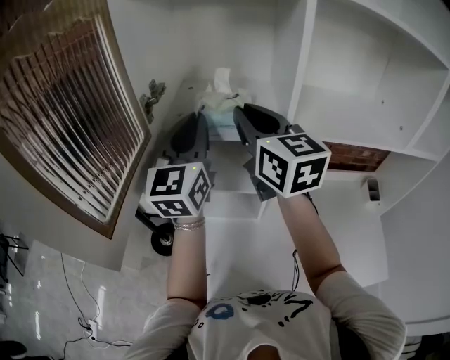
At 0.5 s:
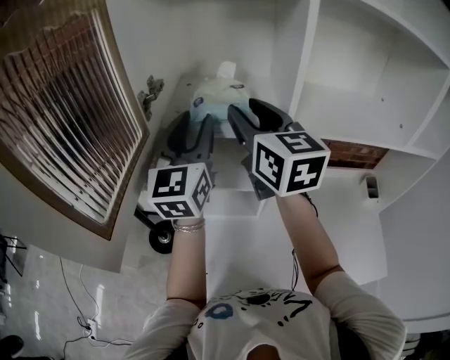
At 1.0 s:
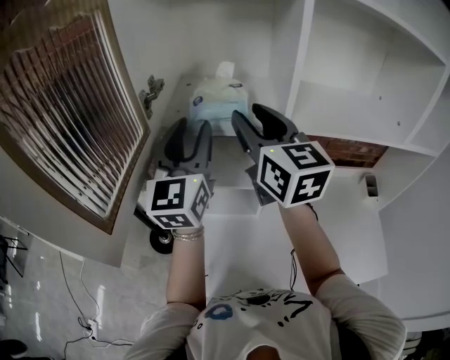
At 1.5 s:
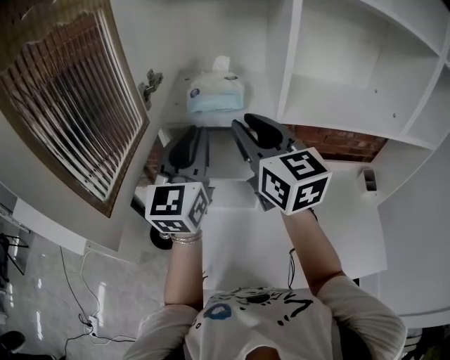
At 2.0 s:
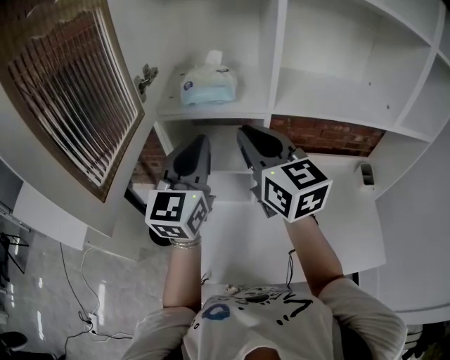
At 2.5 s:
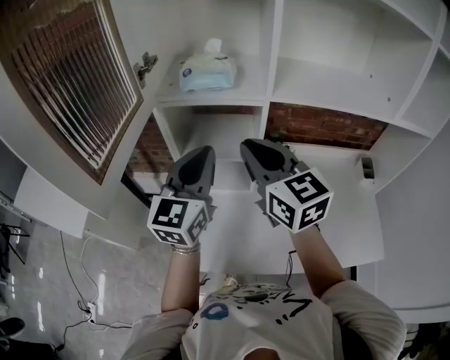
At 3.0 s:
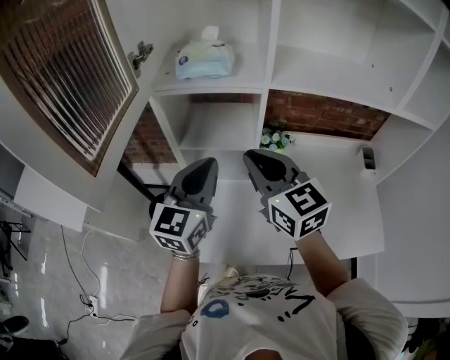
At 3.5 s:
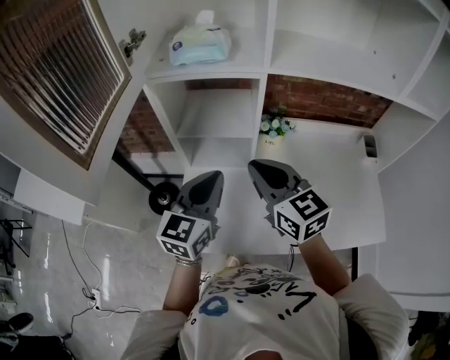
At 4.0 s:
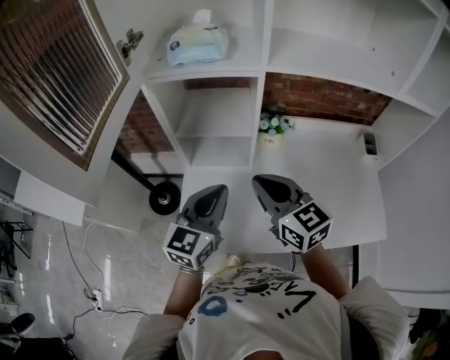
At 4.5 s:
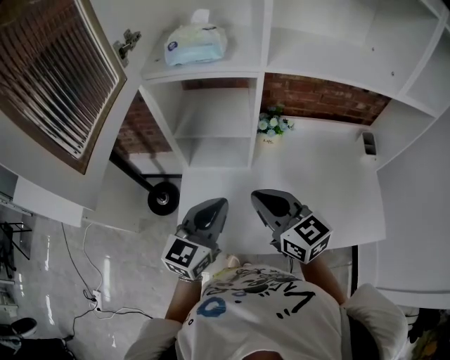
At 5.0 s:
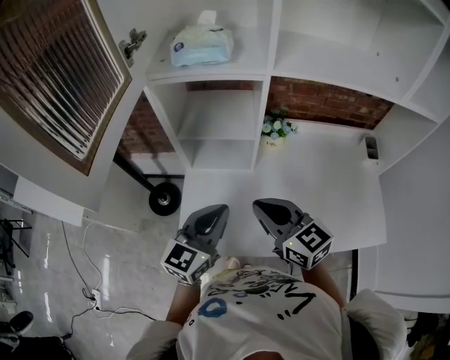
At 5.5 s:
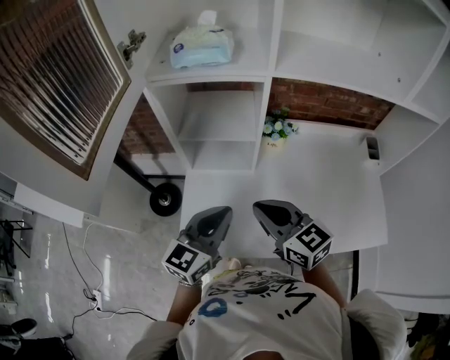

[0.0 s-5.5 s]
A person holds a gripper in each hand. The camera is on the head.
0.0 to 2.0 s: The grippers both shift backward by roughly 10 cm. The left gripper opens and closes again; the right gripper opens, then closes once more.
2.0 to 3.5 s: The grippers both shift downward and backward by some 15 cm. The left gripper rotates about 20 degrees.
3.5 to 5.5 s: The left gripper goes approximately 10 cm backward and downward. Meanwhile the right gripper heads downward and backward, covering about 10 cm.

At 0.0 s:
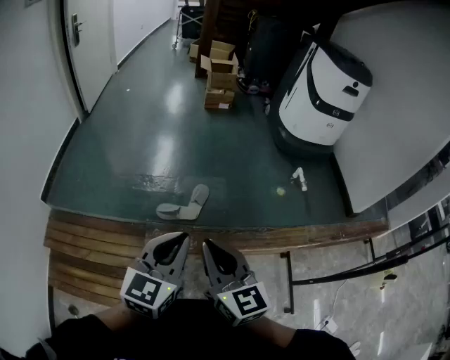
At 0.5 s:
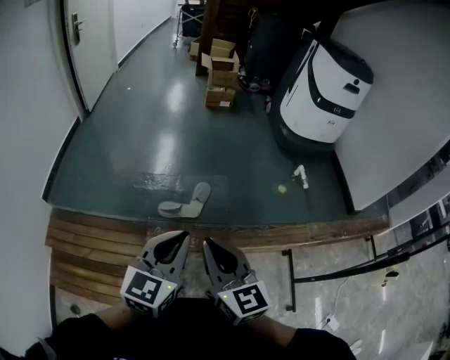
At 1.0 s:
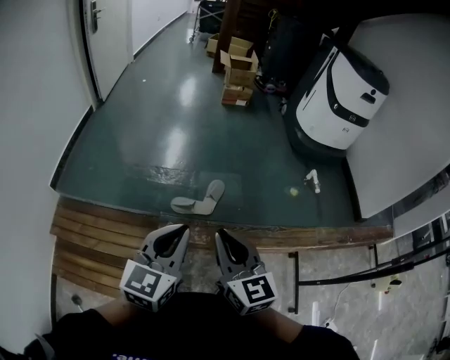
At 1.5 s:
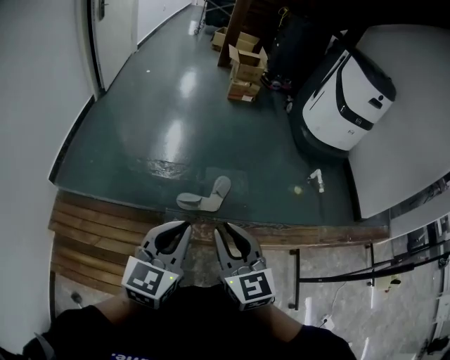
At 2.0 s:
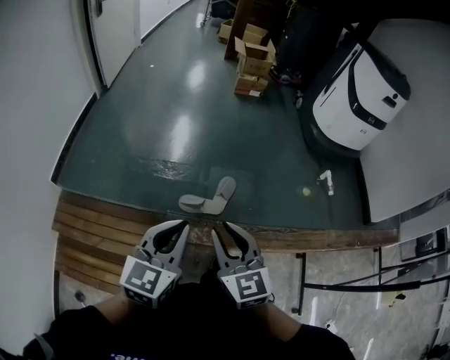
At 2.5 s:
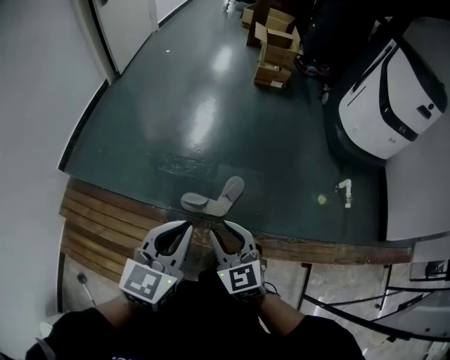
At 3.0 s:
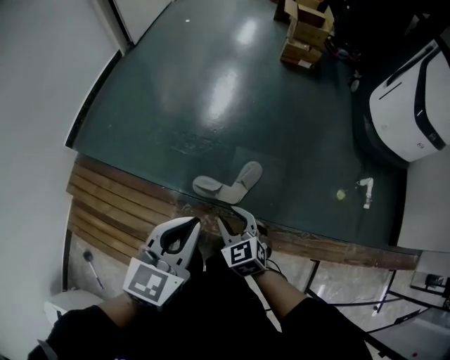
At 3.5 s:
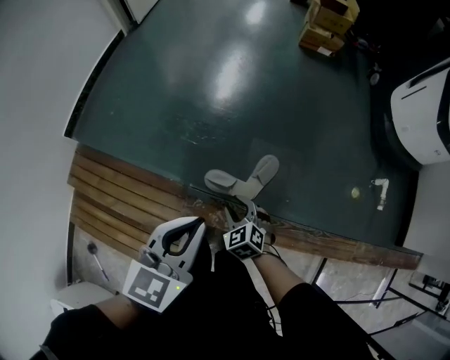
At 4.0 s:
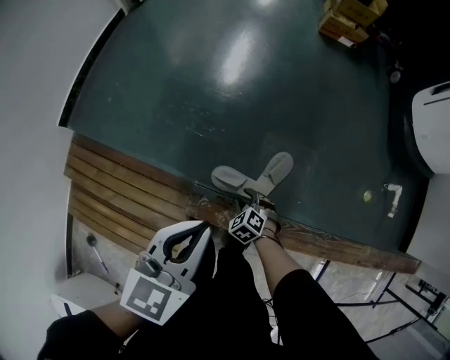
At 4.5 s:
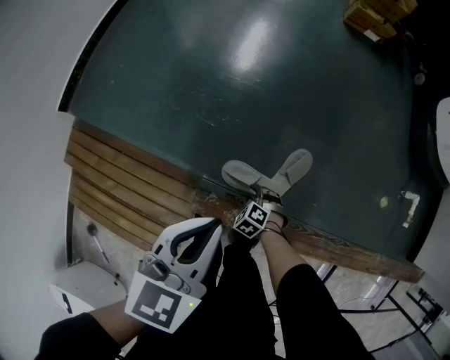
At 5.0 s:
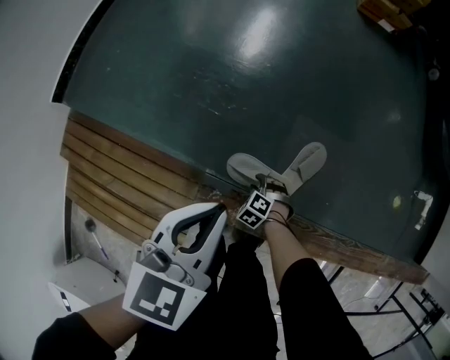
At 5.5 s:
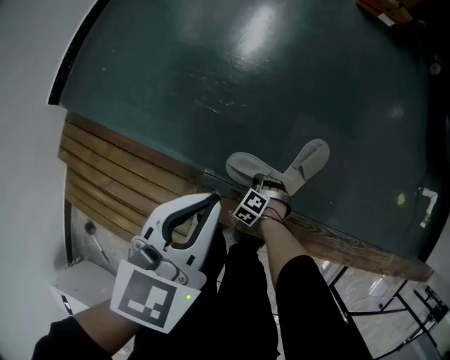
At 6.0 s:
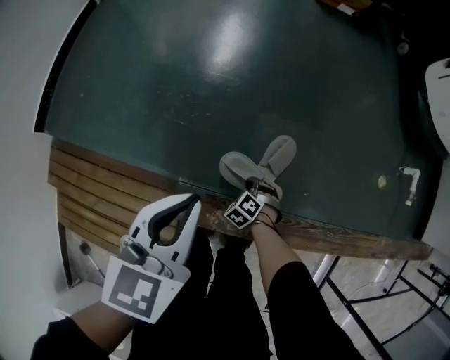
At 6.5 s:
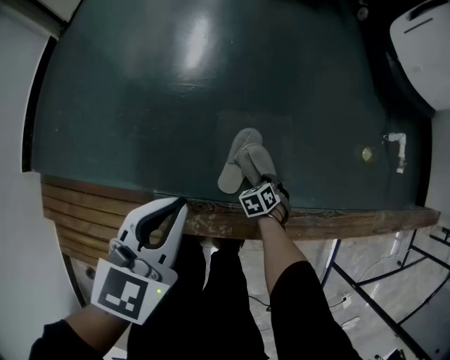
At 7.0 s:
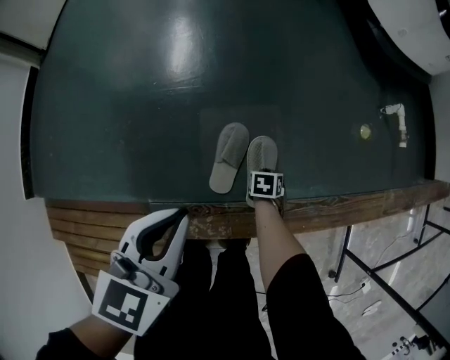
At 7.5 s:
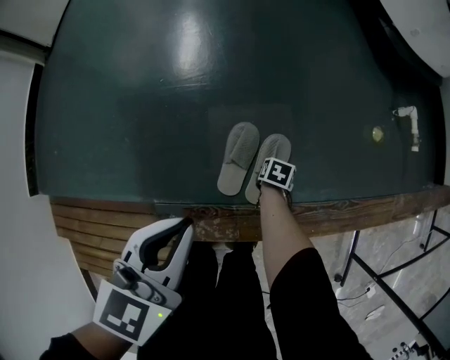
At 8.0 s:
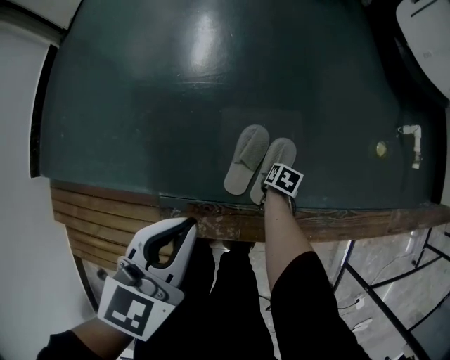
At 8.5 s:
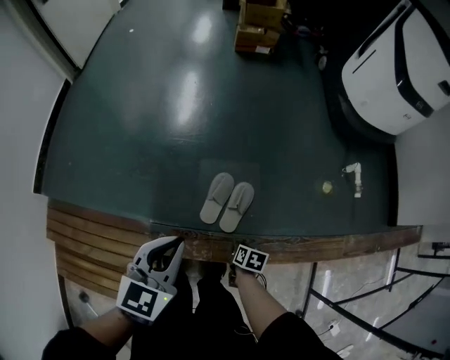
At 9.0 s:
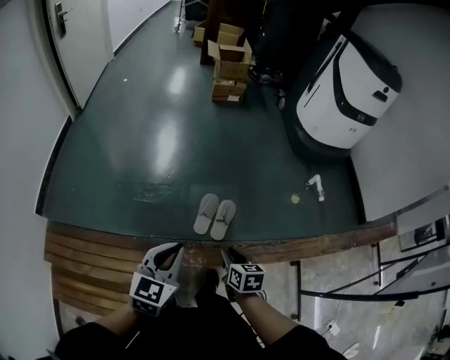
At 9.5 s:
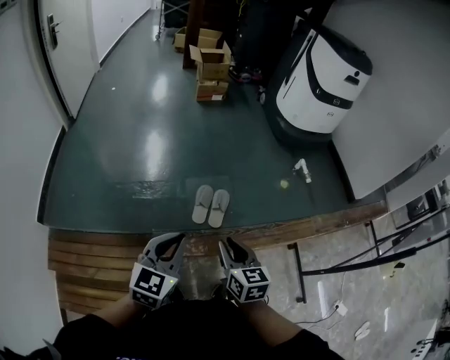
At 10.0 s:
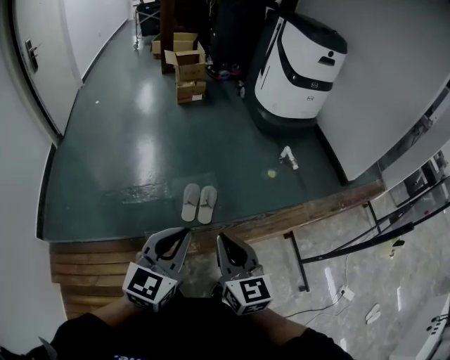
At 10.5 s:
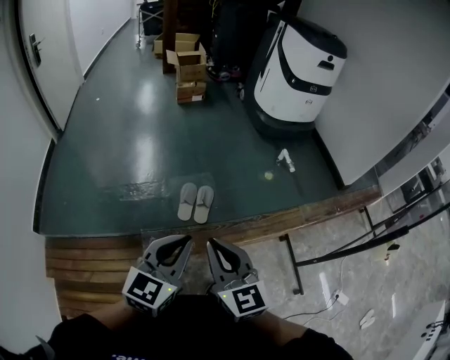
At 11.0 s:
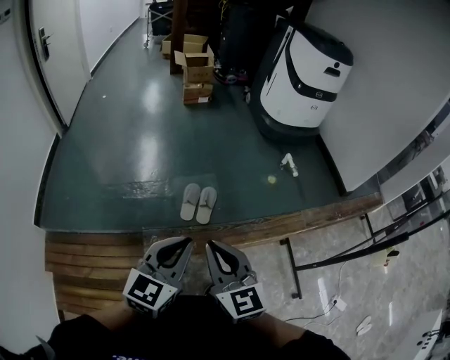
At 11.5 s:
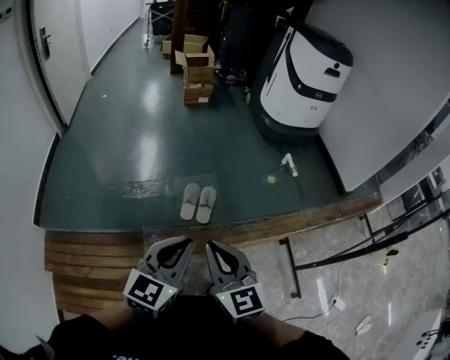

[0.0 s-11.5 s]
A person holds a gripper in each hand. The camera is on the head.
0.0 to 2.0 s: The right gripper goes about 15 cm forward, to the left and downward. Meanwhile the left gripper is displaced to the left and forward by some 15 cm.
2.0 to 4.0 s: The right gripper is displaced downward and forward by roughly 60 cm, and points its fingers about 60 degrees further downward, while the left gripper heads forward and downward, covering some 30 cm.
4.0 to 6.0 s: The grippers both shift downward by about 15 cm. The right gripper closes.
6.0 to 7.5 s: The right gripper changes place by approximately 25 cm, and rolls clockwise, seen from behind, by approximately 90 degrees. Meanwhile the left gripper changes place by roughly 15 cm.
7.5 to 9.5 s: The left gripper shifts by some 40 cm, and rotates approximately 20 degrees. Meanwhile the right gripper heads upward, covering about 60 cm, and tilts its fingers approximately 50 degrees upward.
9.5 to 11.5 s: The right gripper shifts roughly 15 cm upward and backward, turns by roughly 30 degrees, and closes up, while the left gripper travels to the right, backward and upward by approximately 15 cm.

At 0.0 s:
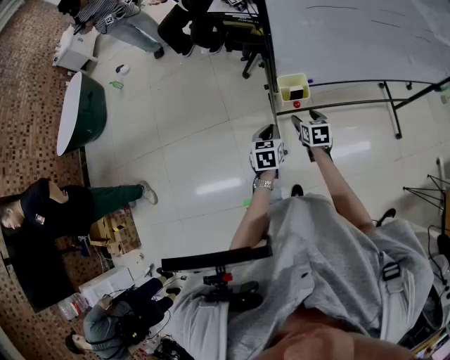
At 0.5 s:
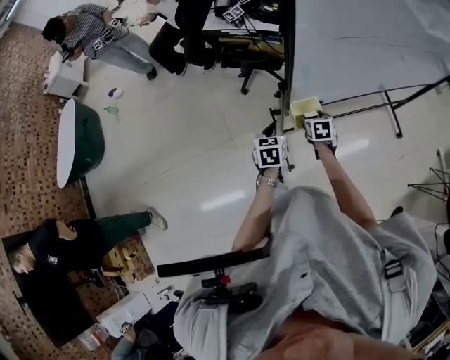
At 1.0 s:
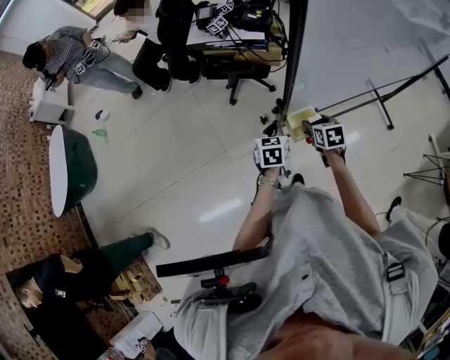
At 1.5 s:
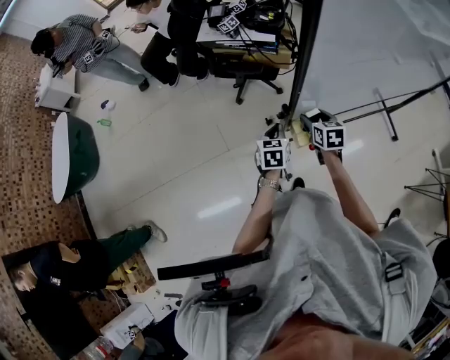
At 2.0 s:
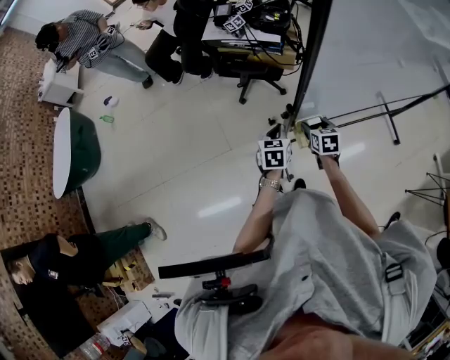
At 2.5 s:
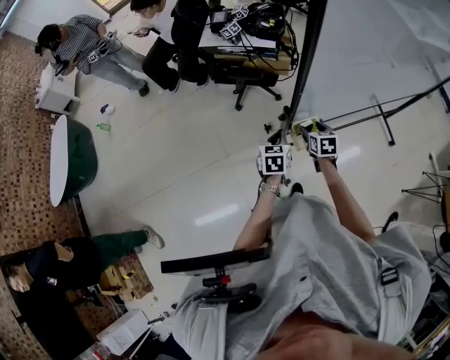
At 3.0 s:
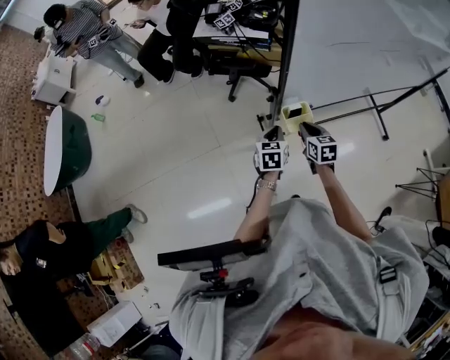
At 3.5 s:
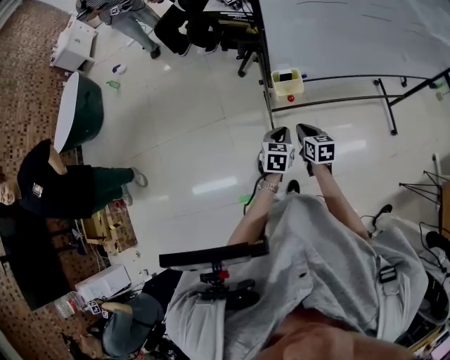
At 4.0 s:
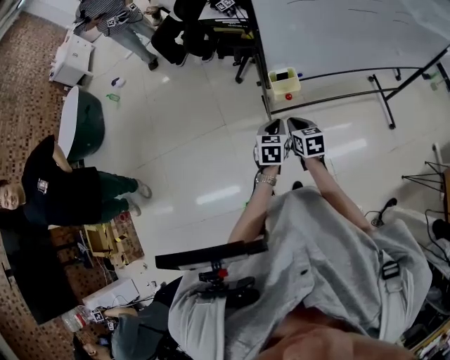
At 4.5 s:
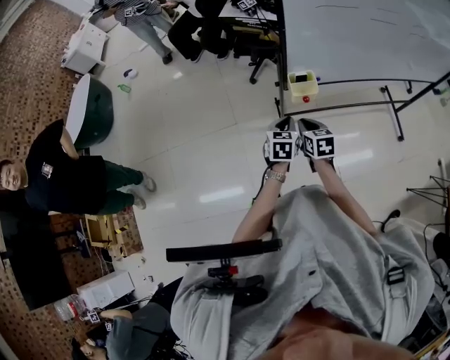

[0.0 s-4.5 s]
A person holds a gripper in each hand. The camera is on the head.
0.0 to 2.0 s: The grippers both shift forward by some 15 cm.
2.0 to 4.5 s: The two grippers go about 20 cm backward. The right gripper closes.

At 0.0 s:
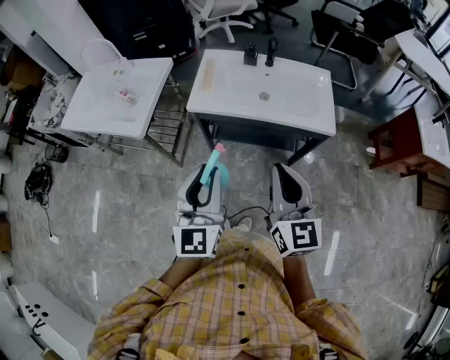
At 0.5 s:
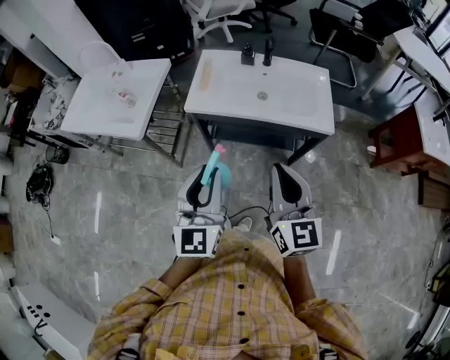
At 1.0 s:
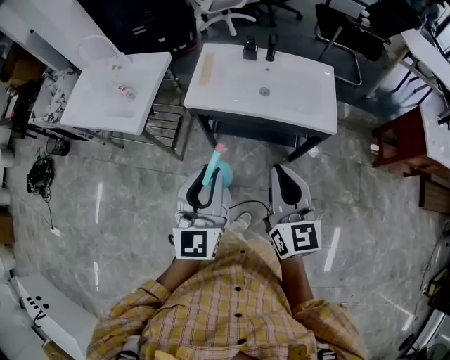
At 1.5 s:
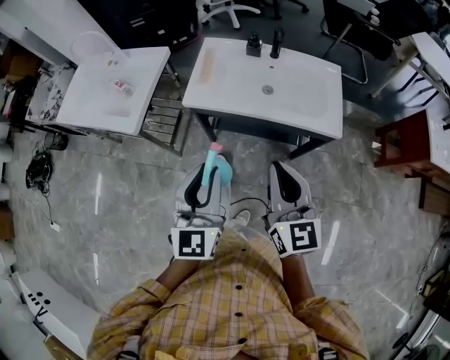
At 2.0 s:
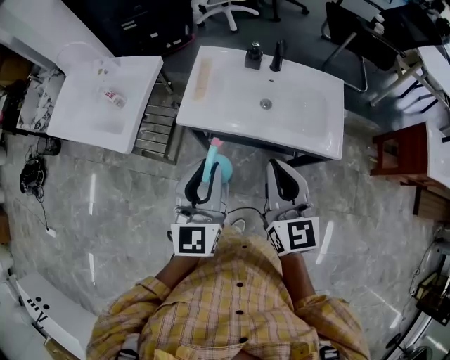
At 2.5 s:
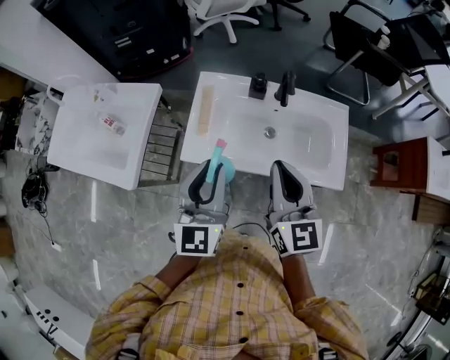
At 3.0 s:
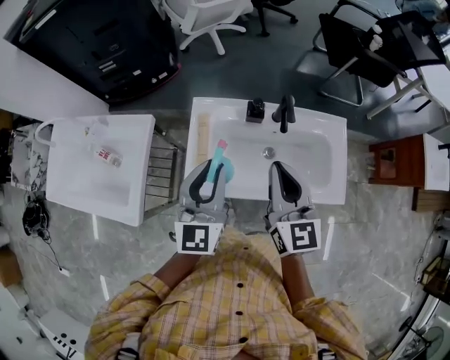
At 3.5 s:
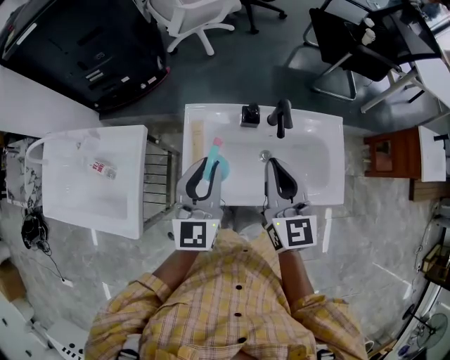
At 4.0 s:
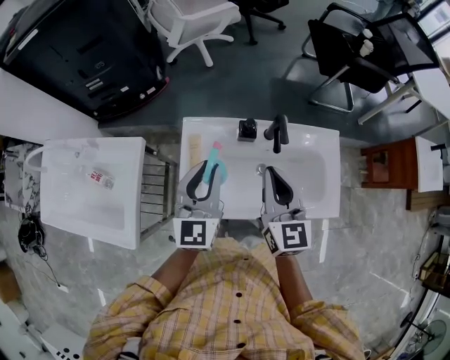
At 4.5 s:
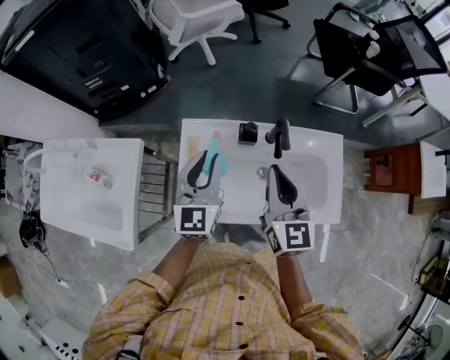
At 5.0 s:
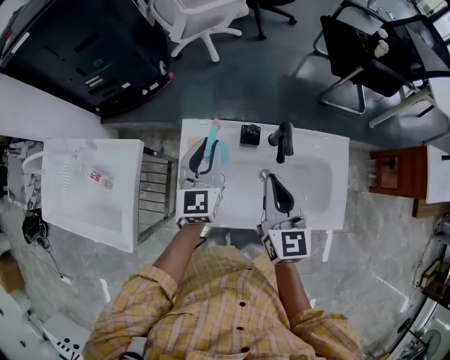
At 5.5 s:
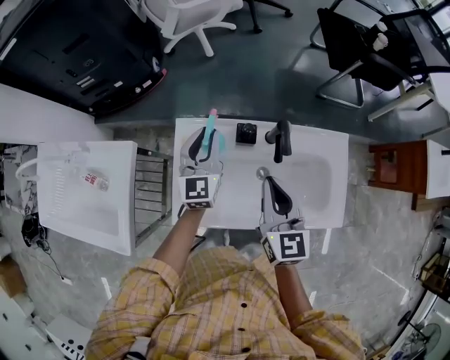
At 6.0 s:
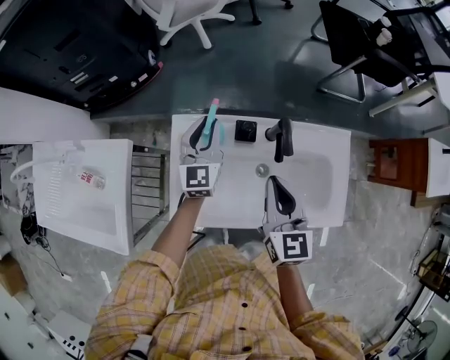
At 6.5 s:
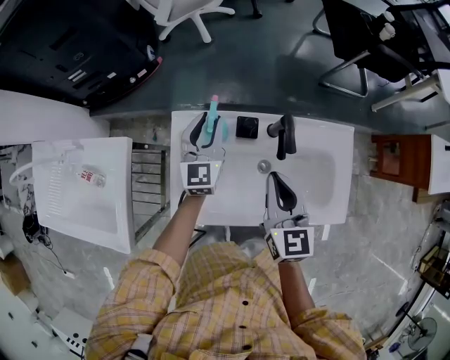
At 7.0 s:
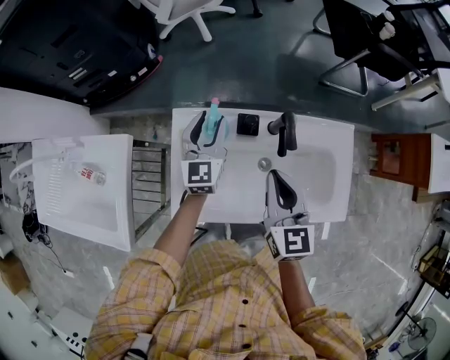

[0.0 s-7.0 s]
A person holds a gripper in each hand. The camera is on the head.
0.0 to 2.0 s: Both grippers travel together forward, about 15 cm.
2.0 to 3.5 s: Both grippers move forward, some 30 cm.
3.5 to 5.0 s: The right gripper is displaced downward by about 5 cm. The left gripper is displaced forward and downward by about 15 cm.
5.0 to 7.0 s: The left gripper goes some 10 cm downward and forward.
